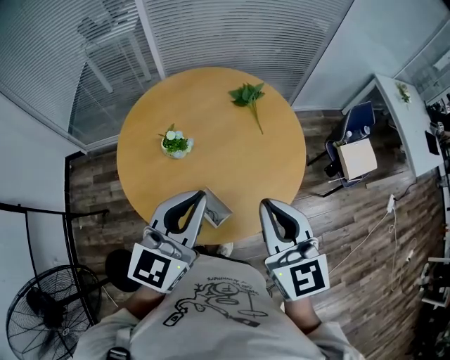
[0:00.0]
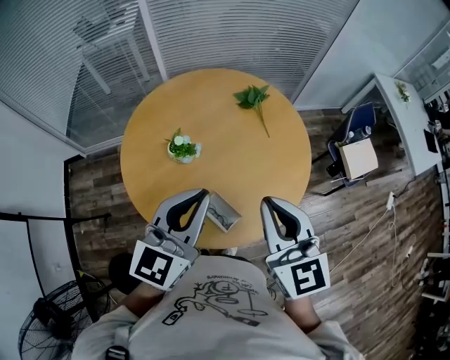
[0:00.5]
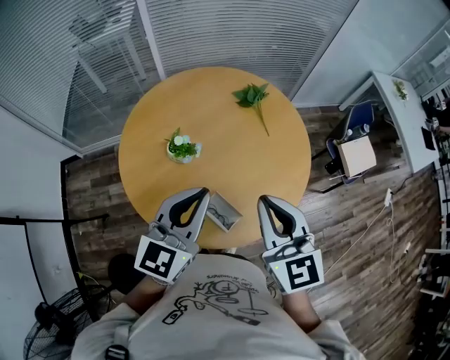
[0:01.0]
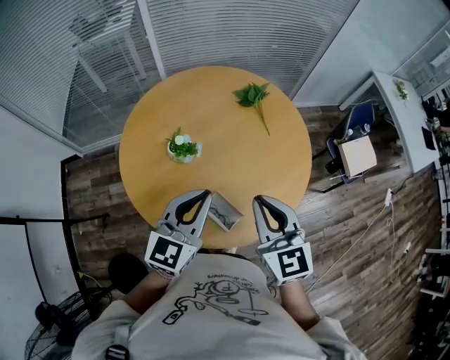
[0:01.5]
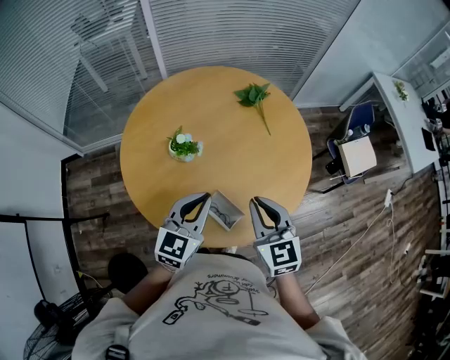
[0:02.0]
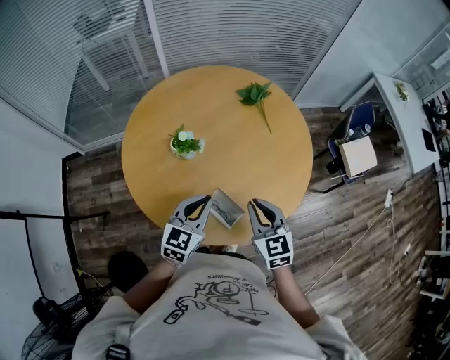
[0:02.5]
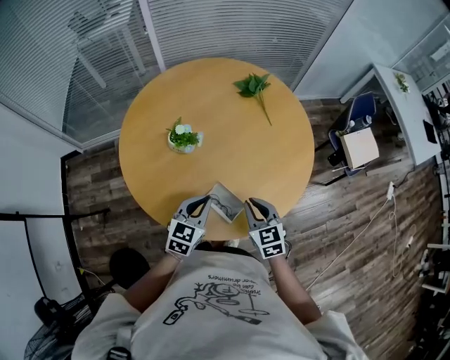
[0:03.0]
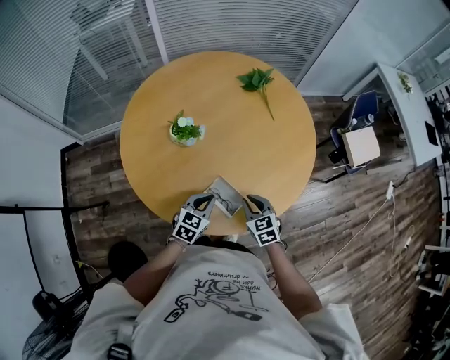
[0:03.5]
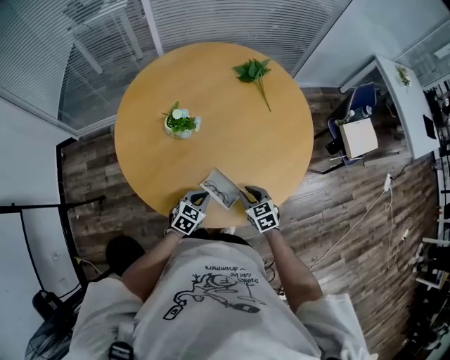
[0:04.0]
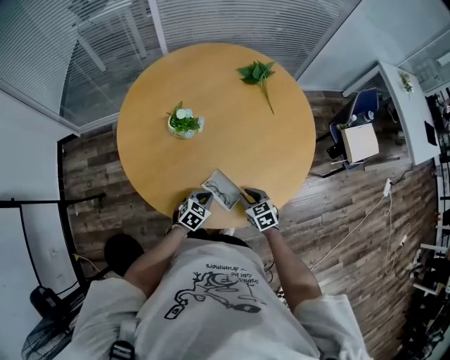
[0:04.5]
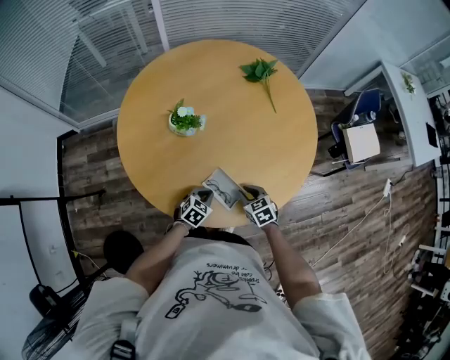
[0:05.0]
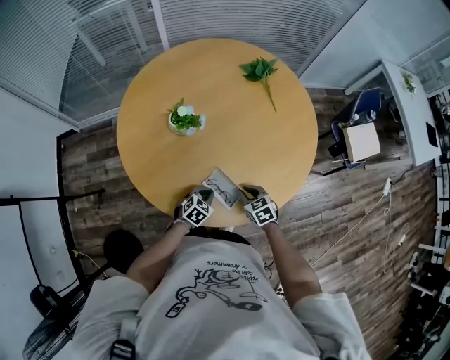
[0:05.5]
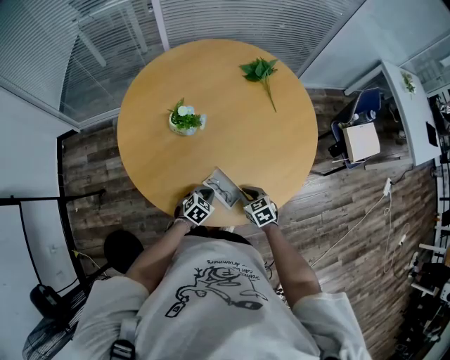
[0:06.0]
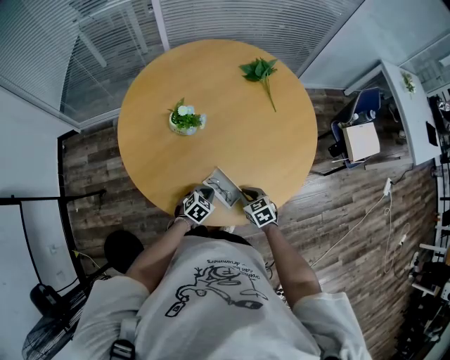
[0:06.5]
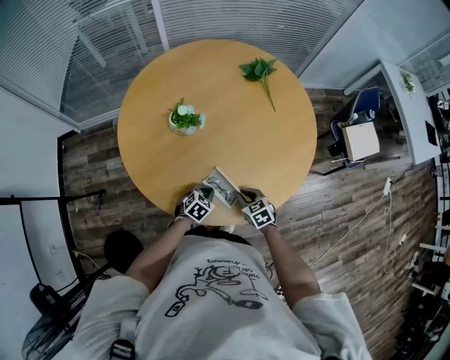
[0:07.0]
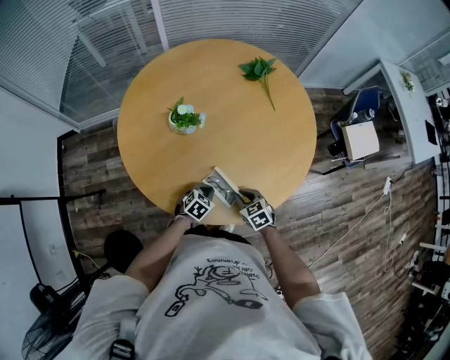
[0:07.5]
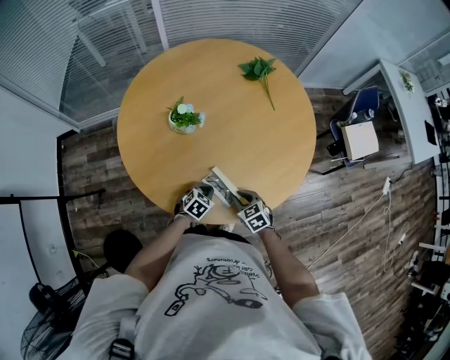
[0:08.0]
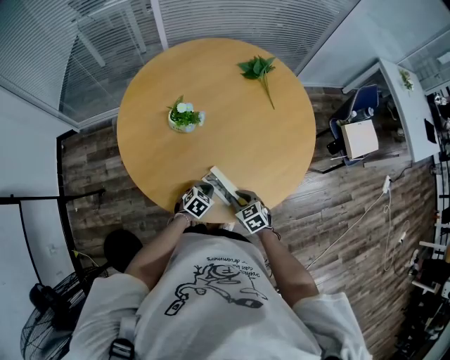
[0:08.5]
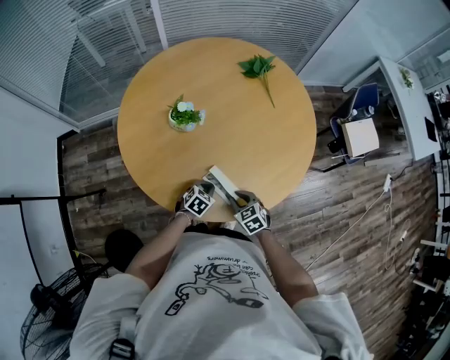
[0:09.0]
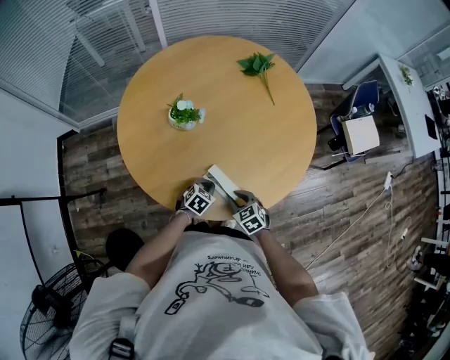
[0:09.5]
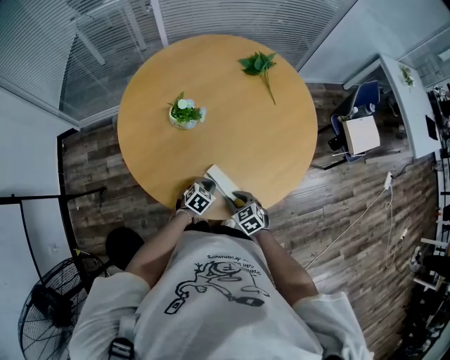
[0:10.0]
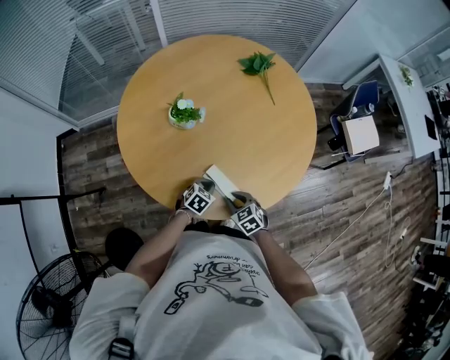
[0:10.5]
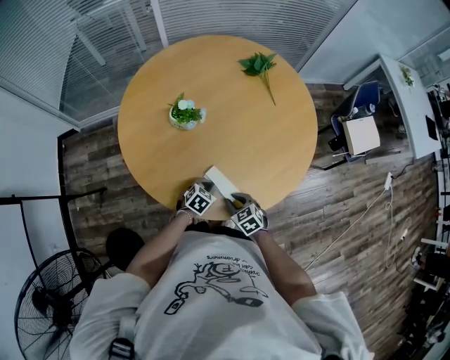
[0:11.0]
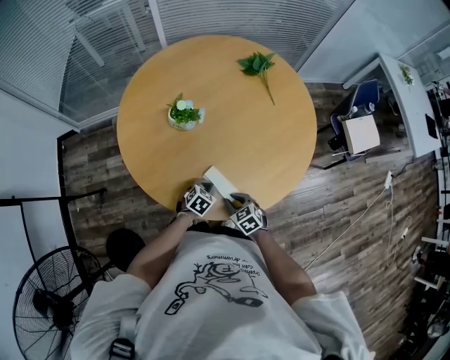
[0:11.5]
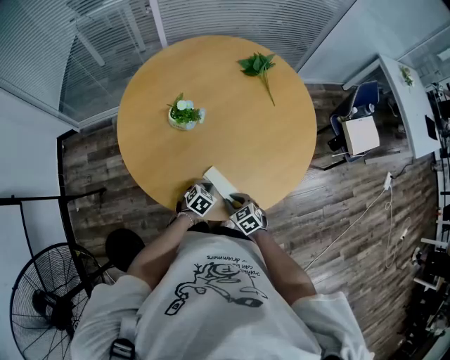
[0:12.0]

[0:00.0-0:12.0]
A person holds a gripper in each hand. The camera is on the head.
0:00.0 to 0:02.0: The grippers both shift downward and to the left by roughly 15 cm.
0:02.0 to 0:04.0: Both grippers travel together downward, some 30 cm. The right gripper rotates approximately 30 degrees. Meanwhile the left gripper rotates approximately 30 degrees.
0:04.0 to 0:06.0: The left gripper is displaced downward by roughly 5 cm.
0:06.0 to 0:08.0: The grippers make only small movements.
0:08.0 to 0:10.0: The grippers move only a little.
0:10.0 to 0:12.0: Neither gripper changes place.

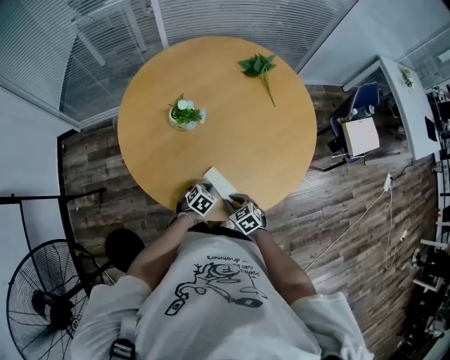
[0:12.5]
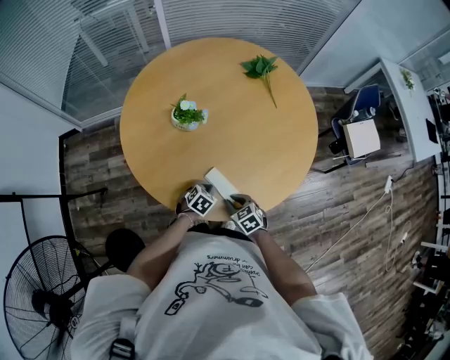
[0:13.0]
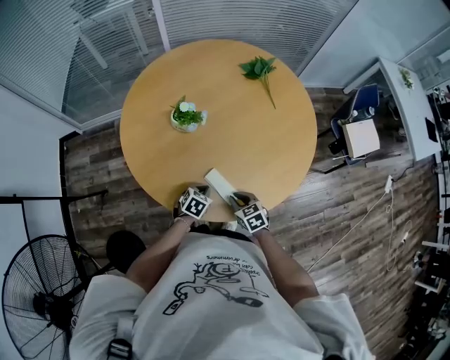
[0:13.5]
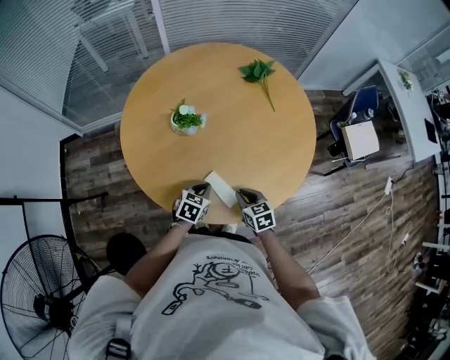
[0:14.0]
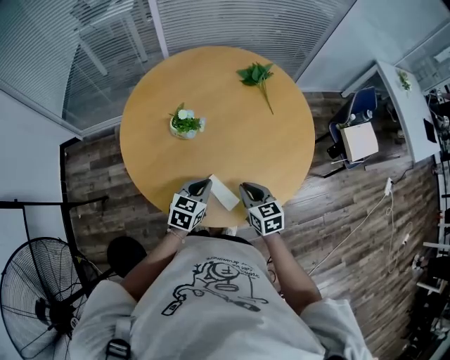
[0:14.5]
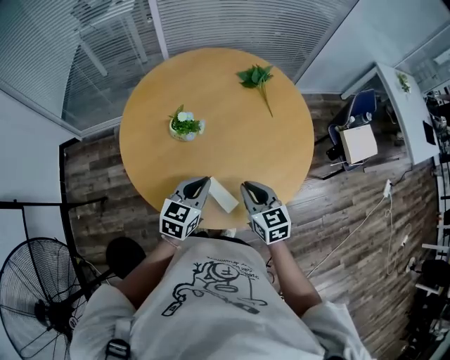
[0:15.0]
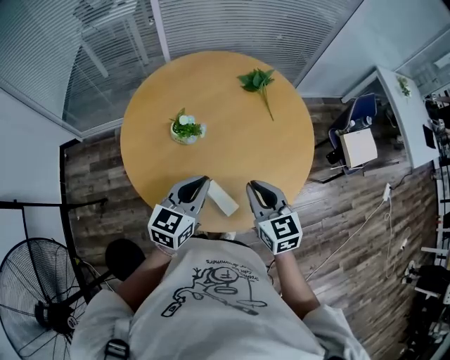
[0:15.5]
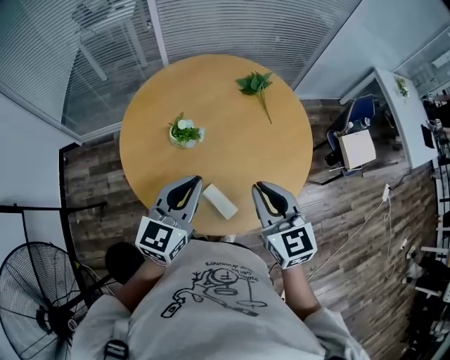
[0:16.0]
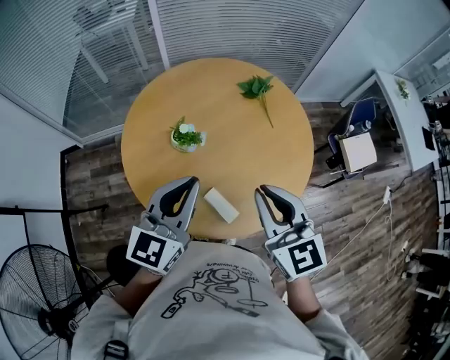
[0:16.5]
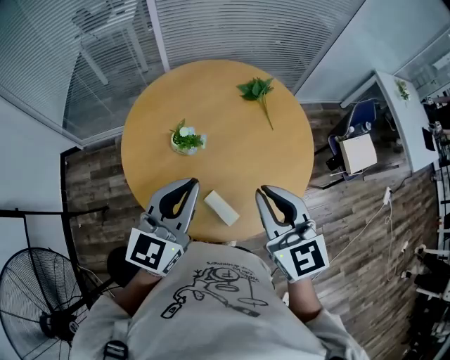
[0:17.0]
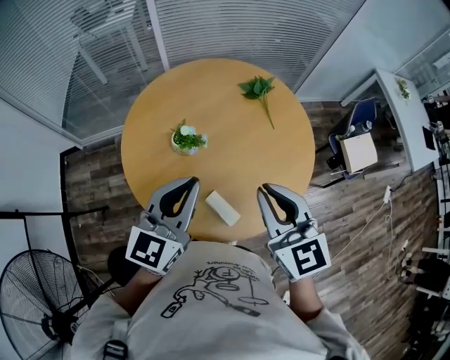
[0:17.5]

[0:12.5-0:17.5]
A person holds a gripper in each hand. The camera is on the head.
0:12.5 to 0:15.0: Both grippers travel together upward, roughly 25 cm. The left gripper angles its fingers upward, by some 30 degrees. The right gripper rotates some 30 degrees.
0:15.0 to 0:17.5: The grippers both shift upward by about 20 cm. The left gripper swivels about 20 degrees.

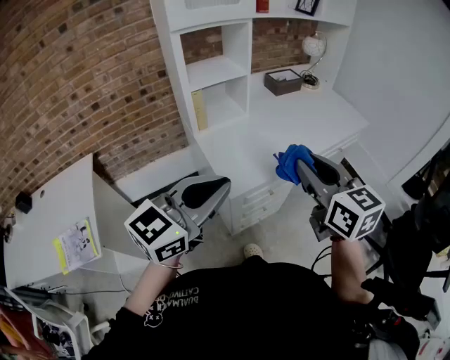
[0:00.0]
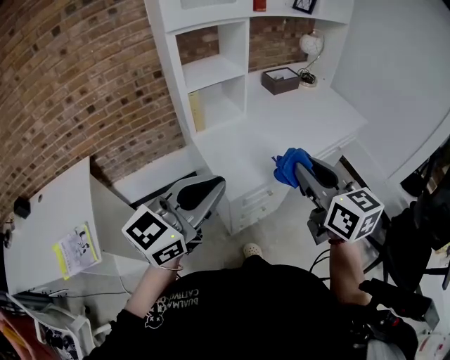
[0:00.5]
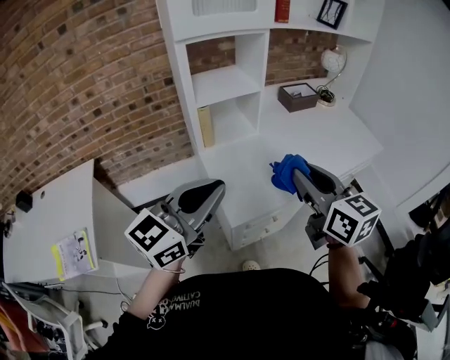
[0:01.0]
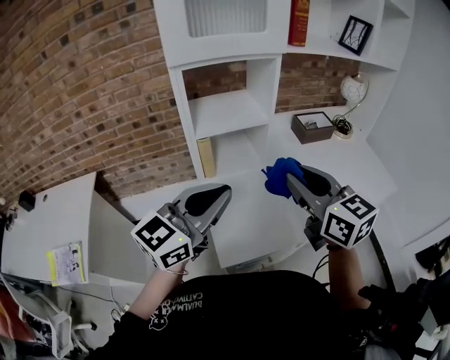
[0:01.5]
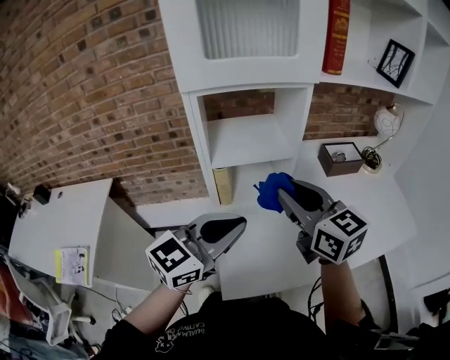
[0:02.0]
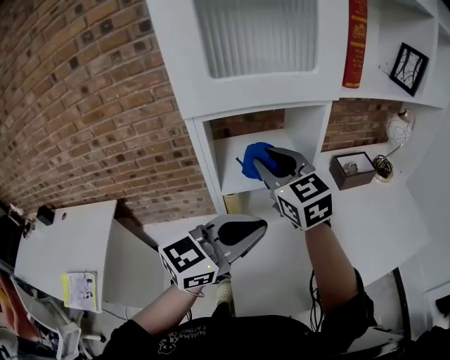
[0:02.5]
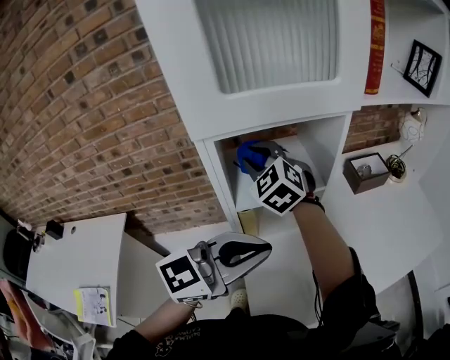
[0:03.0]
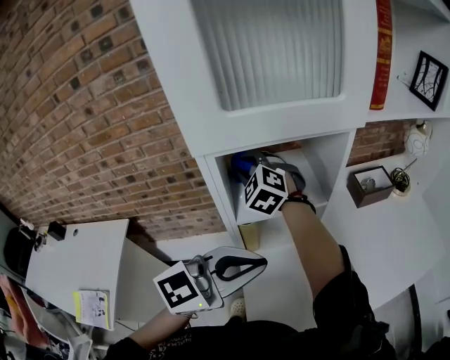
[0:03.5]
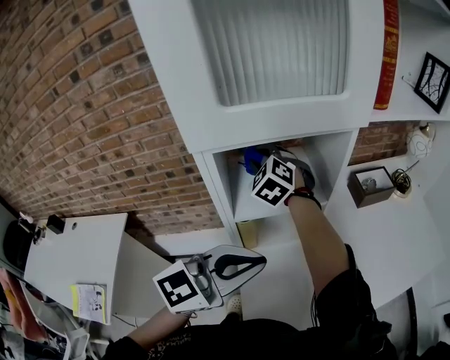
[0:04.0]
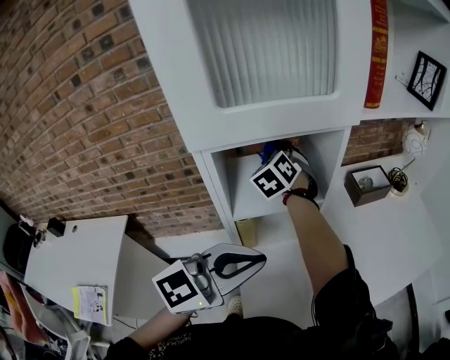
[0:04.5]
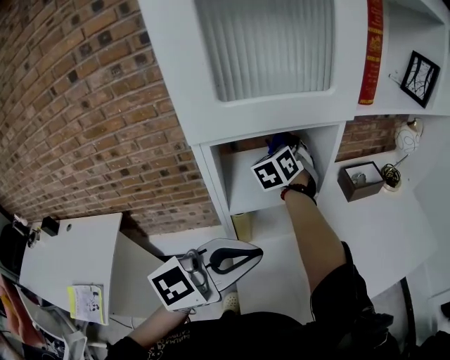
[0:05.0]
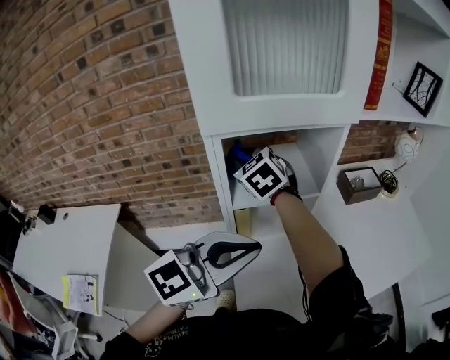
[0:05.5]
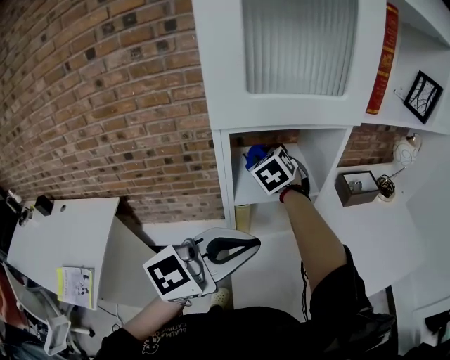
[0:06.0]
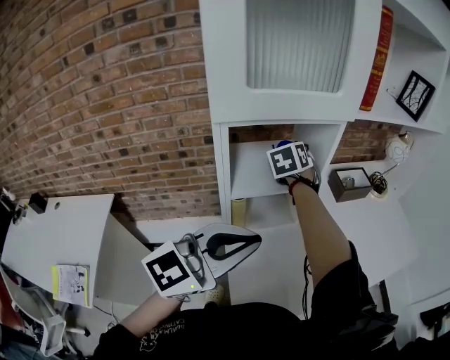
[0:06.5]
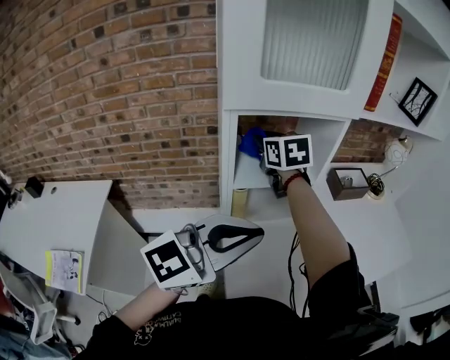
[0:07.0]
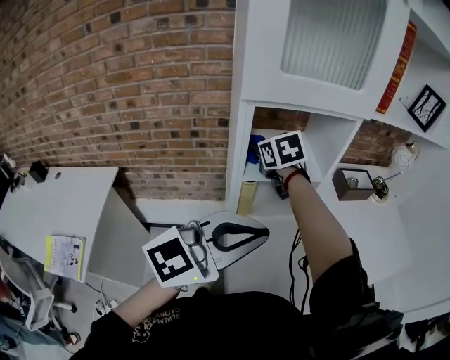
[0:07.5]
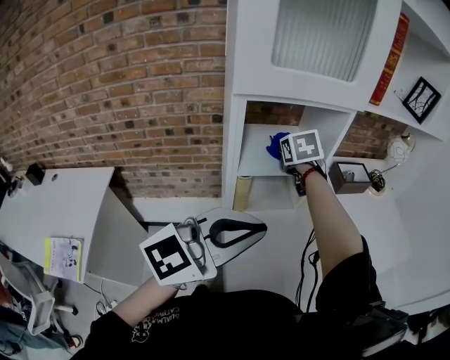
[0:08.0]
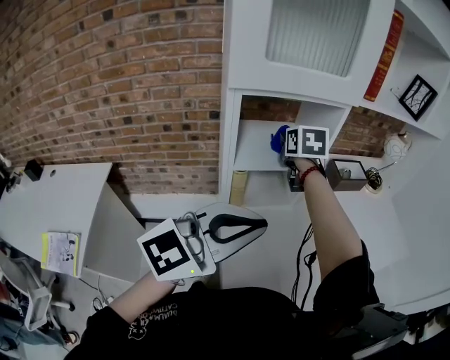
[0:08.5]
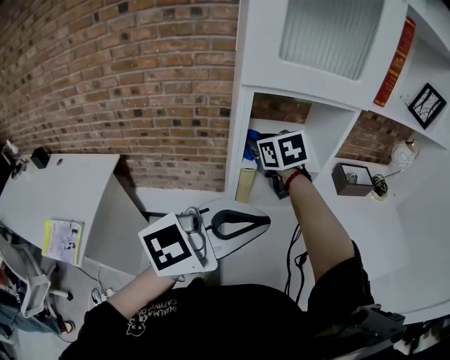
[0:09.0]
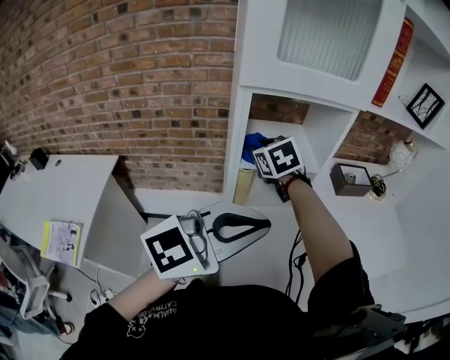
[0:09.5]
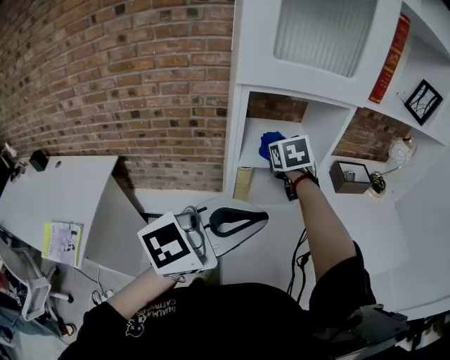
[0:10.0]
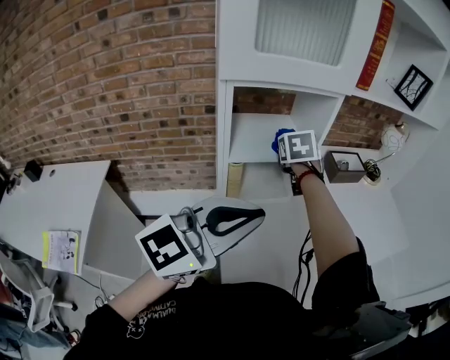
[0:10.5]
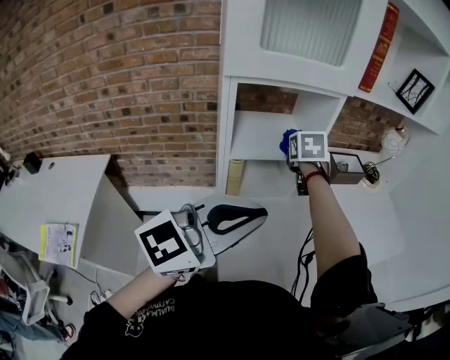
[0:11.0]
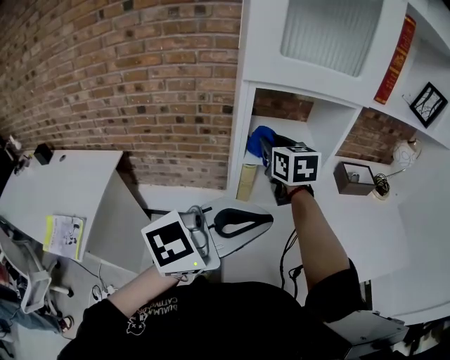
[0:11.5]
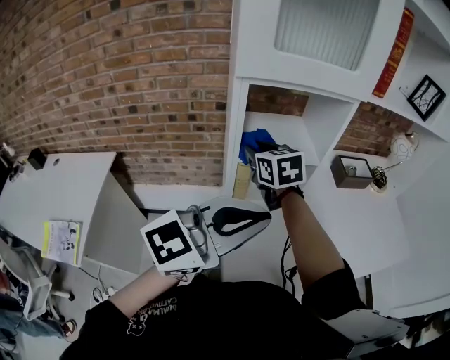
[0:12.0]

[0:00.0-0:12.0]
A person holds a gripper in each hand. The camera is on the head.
0:00.0 to 0:02.0: The two grippers go approximately 30 cm forward. The right gripper changes its angle by roughly 30 degrees.
0:02.0 to 0:04.0: The left gripper is displaced forward by approximately 5 cm. Meanwhile the right gripper goes about 35 cm forward and to the left, and twists roughly 50 degrees counterclockwise, seen from behind.
0:04.0 to 0:06.0: The right gripper swings forward and backward, approximately 10 cm each way, with 2 reversals. Meanwhile the left gripper moves roughly 5 cm.
0:06.0 to 0:08.0: The right gripper goes forward and backward, some 10 cm each way, reversing 2 times, and swivels about 20 degrees. Meanwhile the left gripper ends up about 5 cm from where it was.
0:08.0 to 0:10.0: The right gripper goes to the left and returns, about 10 cm each way.
0:10.0 to 0:12.0: The right gripper goes approximately 5 cm backward, and travels to the right and back again, about 10 cm each way.
